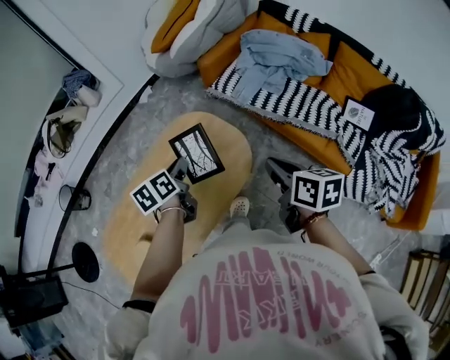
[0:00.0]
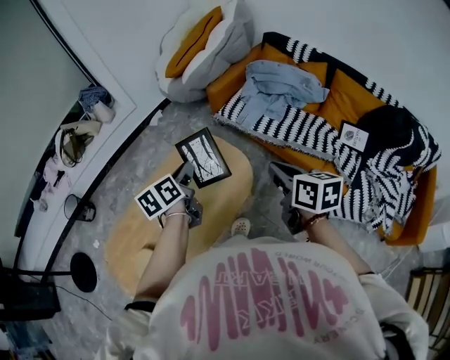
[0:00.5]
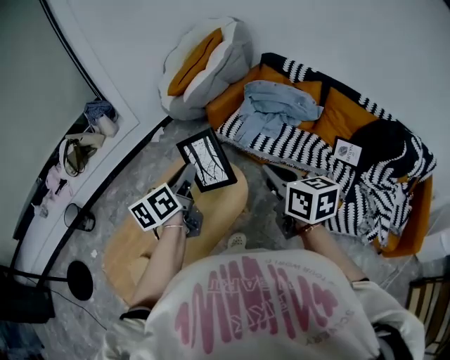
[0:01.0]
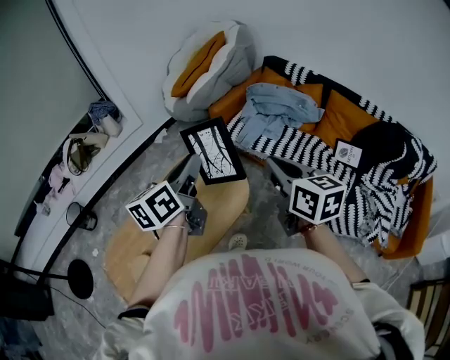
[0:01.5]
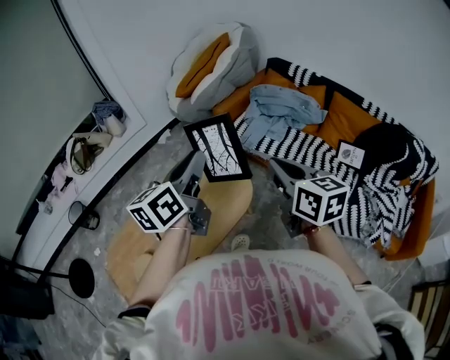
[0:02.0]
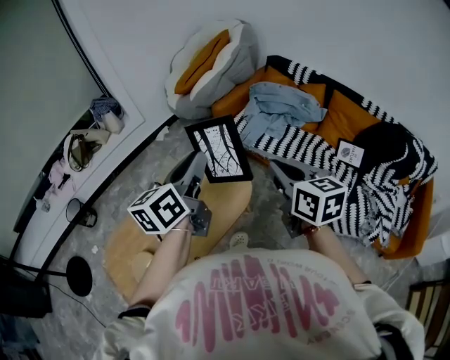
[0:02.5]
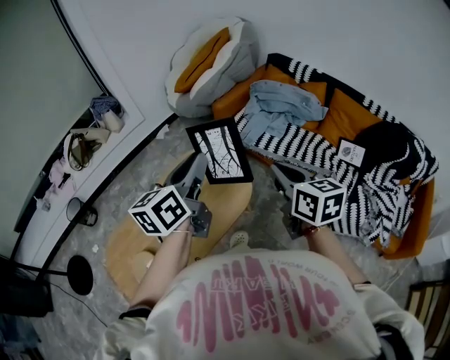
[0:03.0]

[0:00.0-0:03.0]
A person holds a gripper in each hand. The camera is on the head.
0:00.0 to 0:01.5: Both grippers move upward, some 20 cm. The right gripper turns by roughly 30 degrees. Meanwhile the left gripper swivels about 30 degrees.
0:01.5 to 0:03.0: The grippers move only a little.

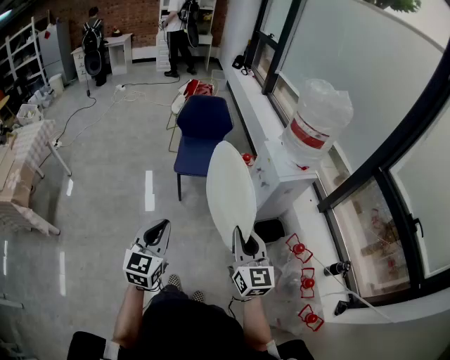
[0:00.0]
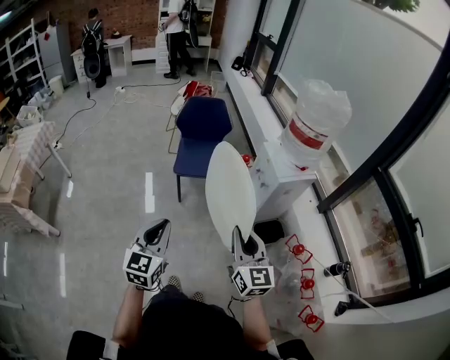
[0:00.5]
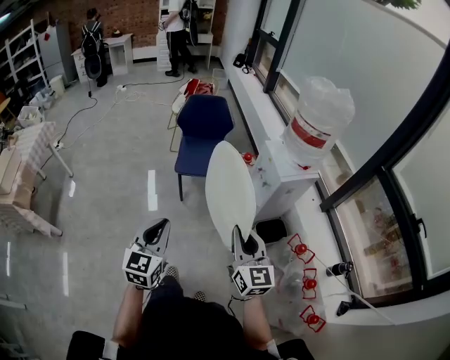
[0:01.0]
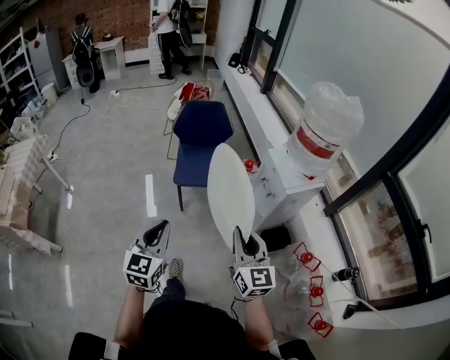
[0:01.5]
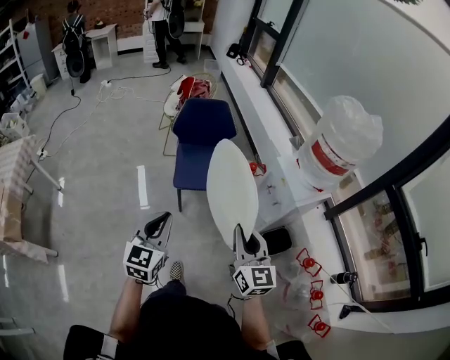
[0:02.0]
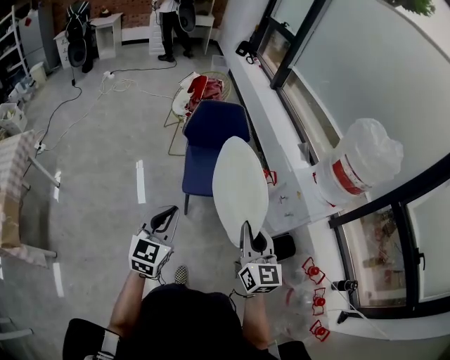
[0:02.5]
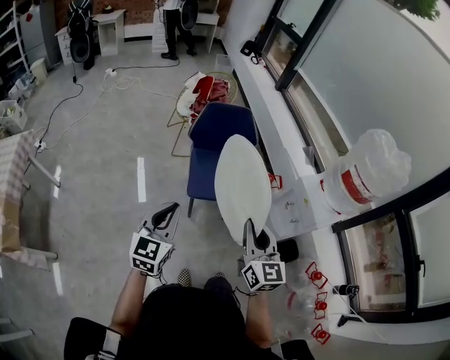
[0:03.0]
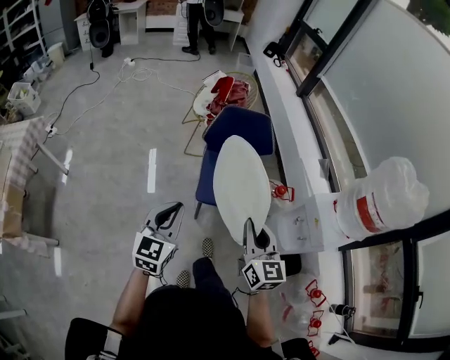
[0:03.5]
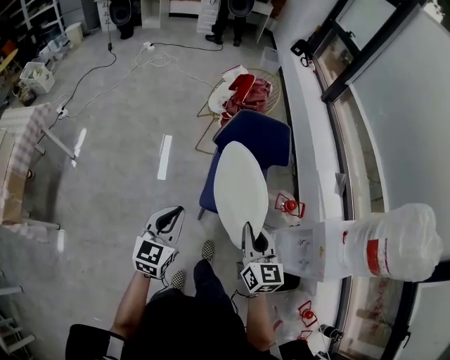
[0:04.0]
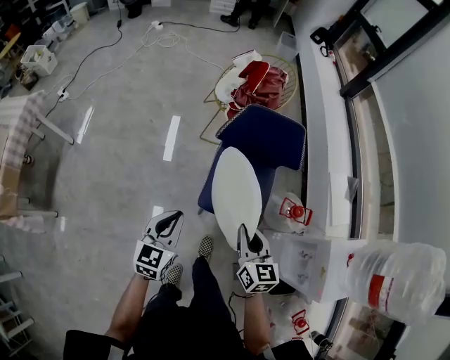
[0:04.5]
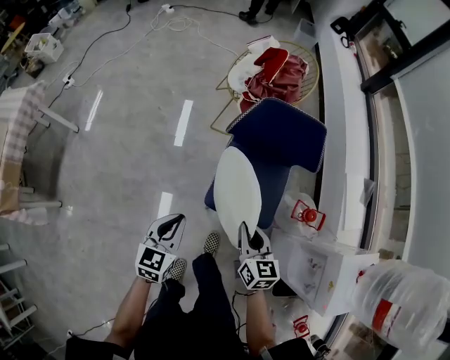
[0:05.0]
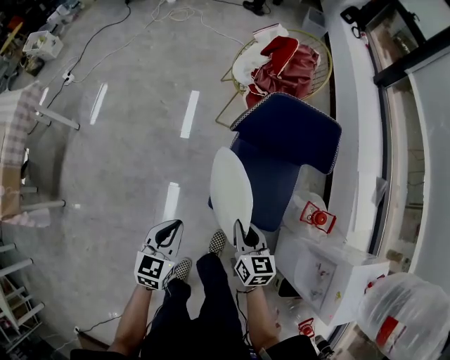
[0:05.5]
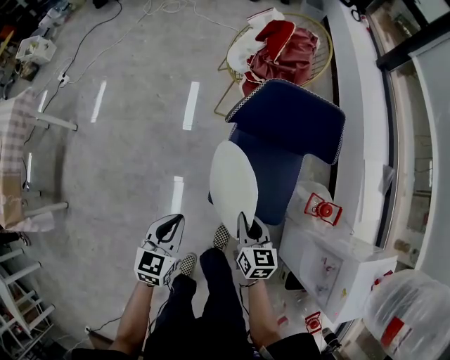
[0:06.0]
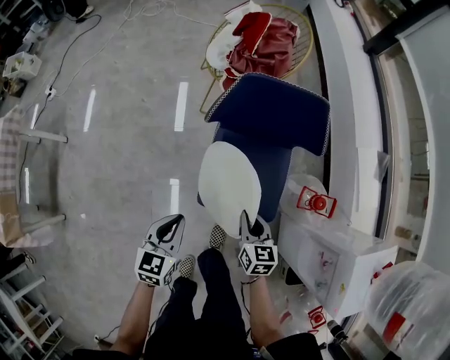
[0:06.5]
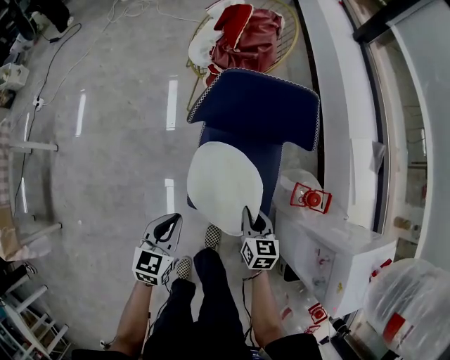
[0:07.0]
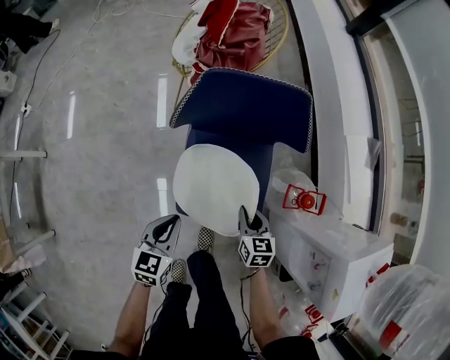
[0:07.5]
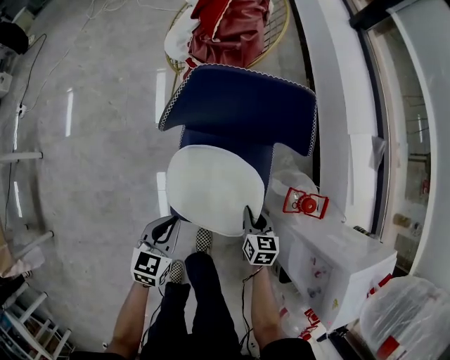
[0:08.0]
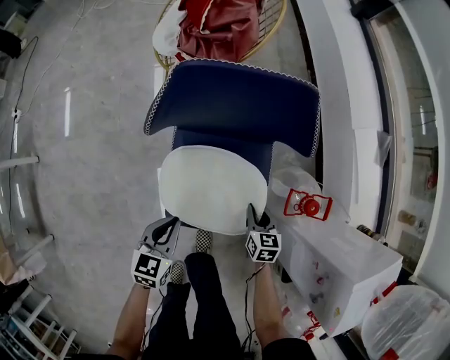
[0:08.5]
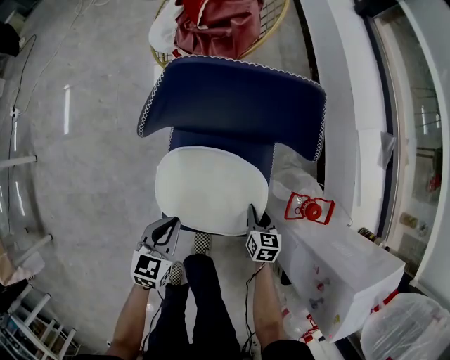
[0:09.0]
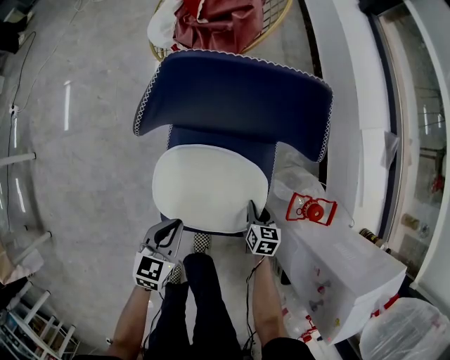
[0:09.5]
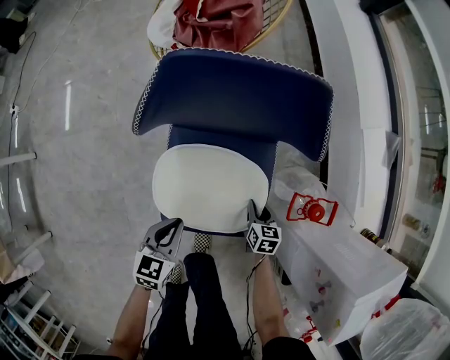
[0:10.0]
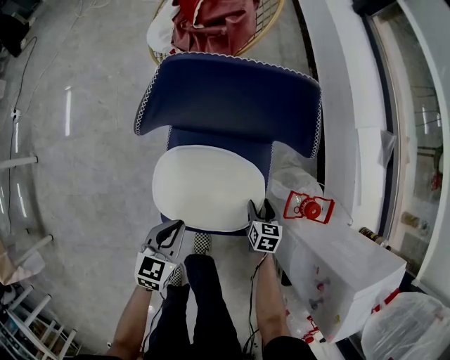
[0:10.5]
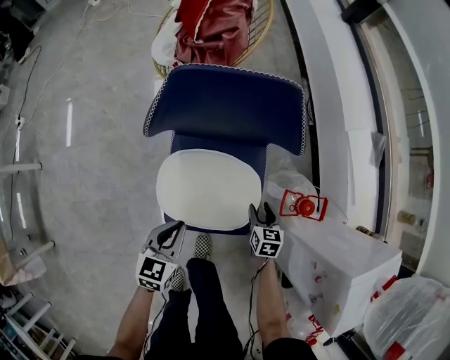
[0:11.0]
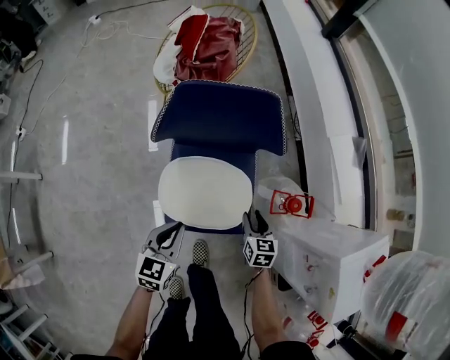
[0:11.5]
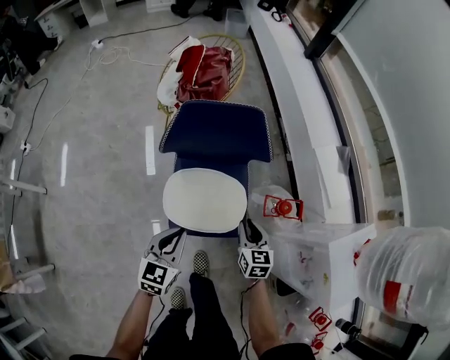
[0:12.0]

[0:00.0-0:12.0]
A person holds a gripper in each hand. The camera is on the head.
0:00.0 to 0:02.0: The left gripper heads forward, covering about 25 cm. Meanwhile the right gripper is displaced forward and to the left by some 25 cm.
0:02.0 to 0:04.0: The grippers both shift forward and to the left by about 35 cm.
0:04.0 to 0:06.0: Both grippers move downward and forward, about 30 cm. The left gripper turns by roughly 20 degrees. The right gripper turns by approximately 20 degrees.
0:06.0 to 0:08.0: The right gripper travels to the right, downward and forward by approximately 25 cm. Meanwhile the left gripper travels downward, to the right and forward by roughly 20 cm.
0:08.0 to 0:10.0: The left gripper goes some 10 cm downward, while the right gripper is displaced downward by some 15 cm.
0:10.0 to 0:12.0: Both grippers travel together upward, approximately 25 cm. The right gripper swivels some 20 degrees, and opens and closes again.

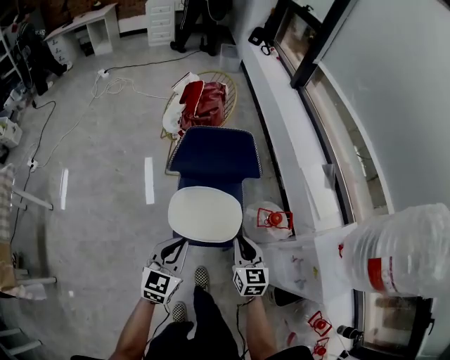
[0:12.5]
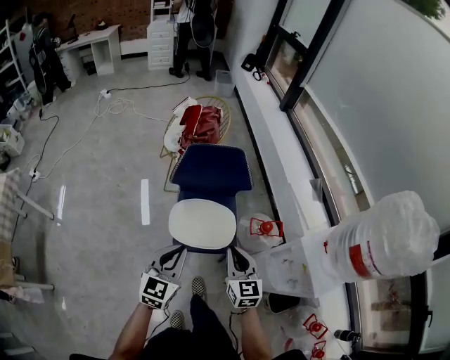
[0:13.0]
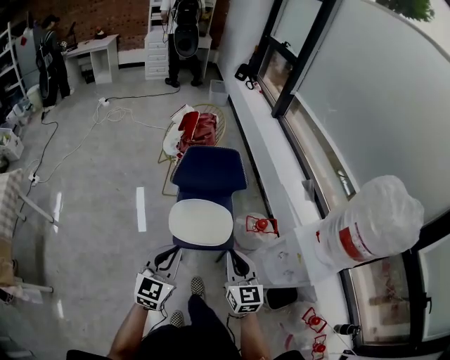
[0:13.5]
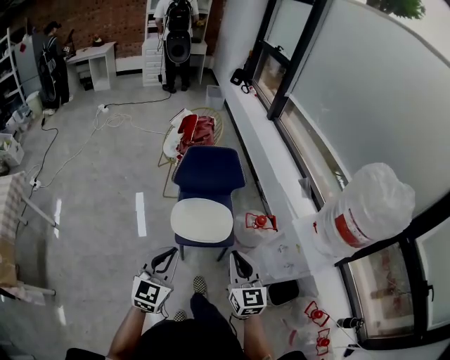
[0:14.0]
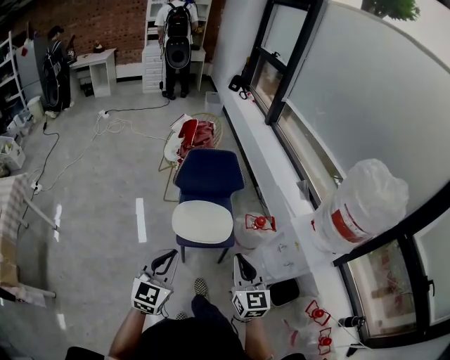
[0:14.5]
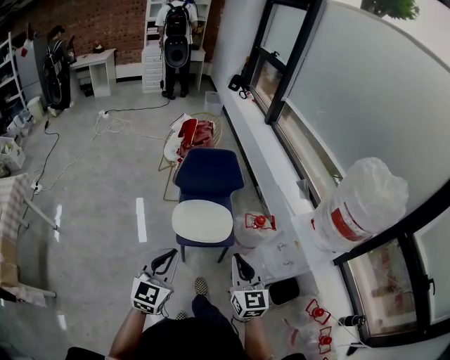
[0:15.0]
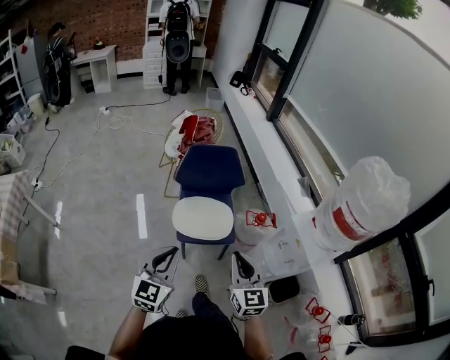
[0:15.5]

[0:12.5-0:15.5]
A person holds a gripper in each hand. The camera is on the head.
0:12.5 to 0:14.0: The two grippers go about 30 cm backward and upward.
0:14.0 to 0:15.5: The grippers move only a little.

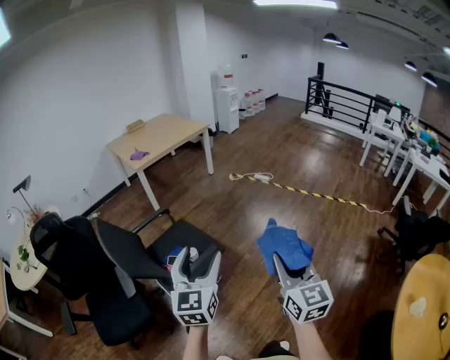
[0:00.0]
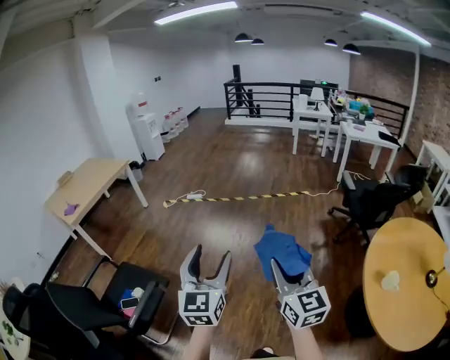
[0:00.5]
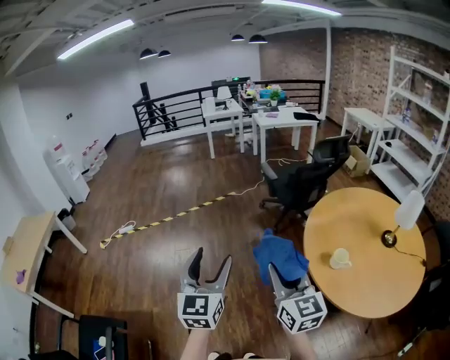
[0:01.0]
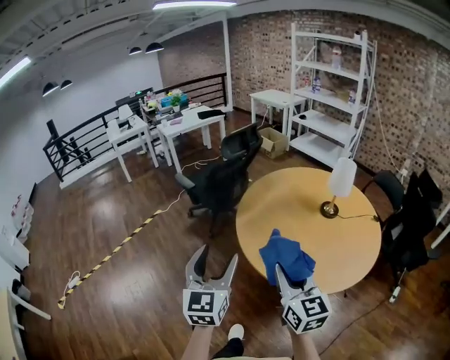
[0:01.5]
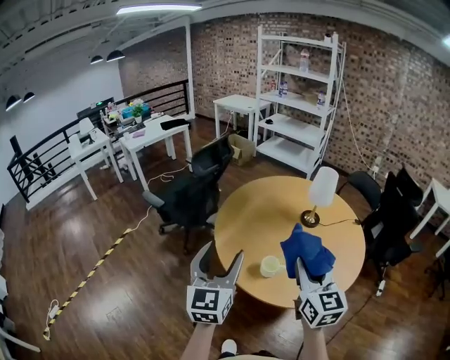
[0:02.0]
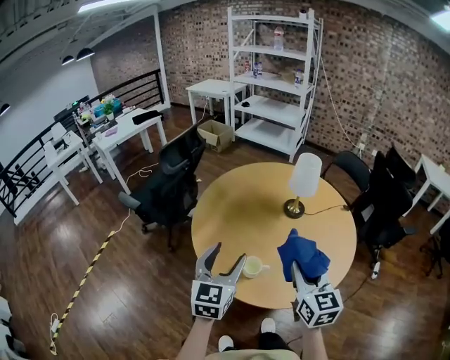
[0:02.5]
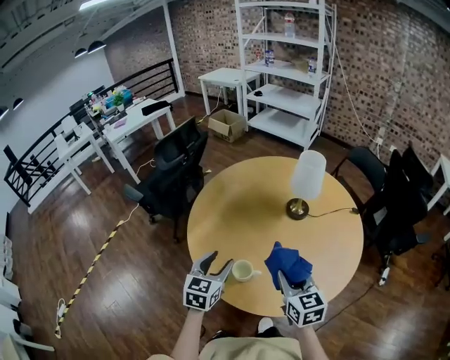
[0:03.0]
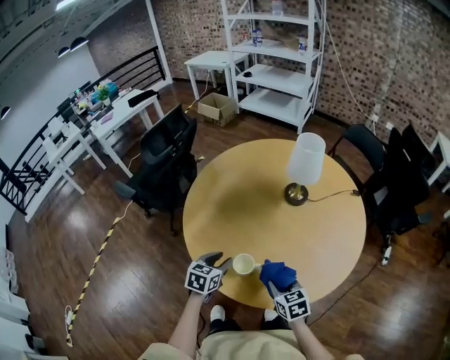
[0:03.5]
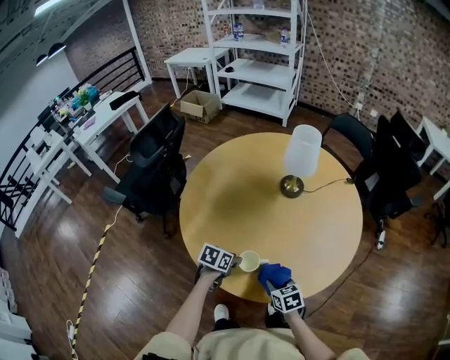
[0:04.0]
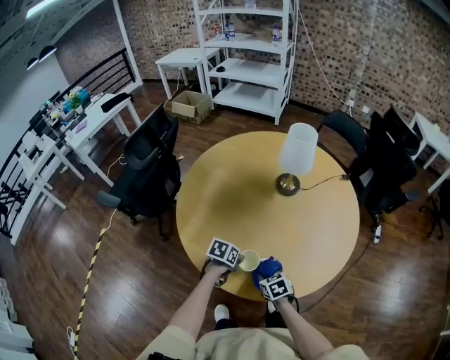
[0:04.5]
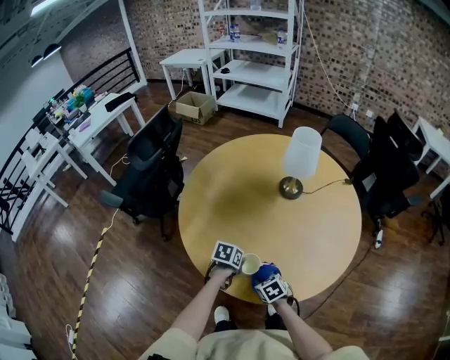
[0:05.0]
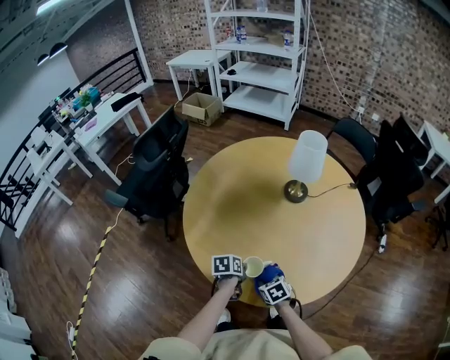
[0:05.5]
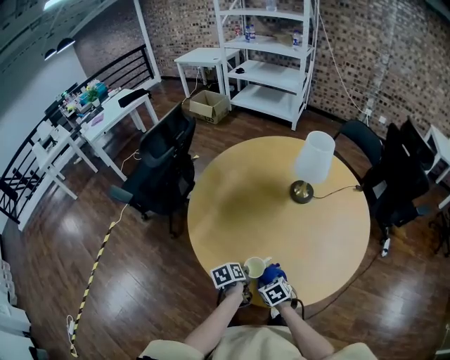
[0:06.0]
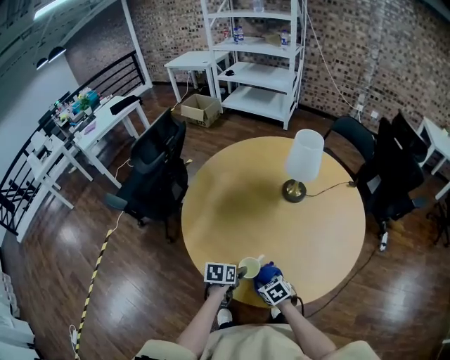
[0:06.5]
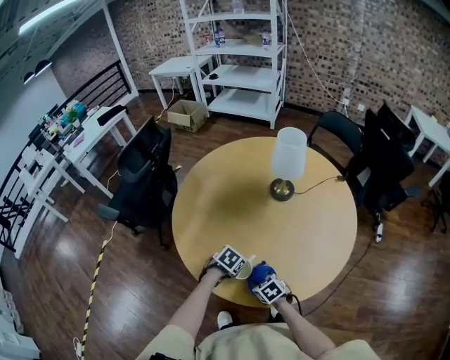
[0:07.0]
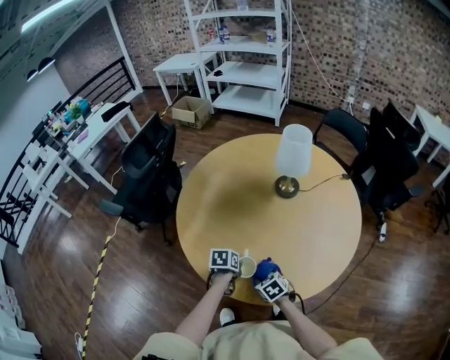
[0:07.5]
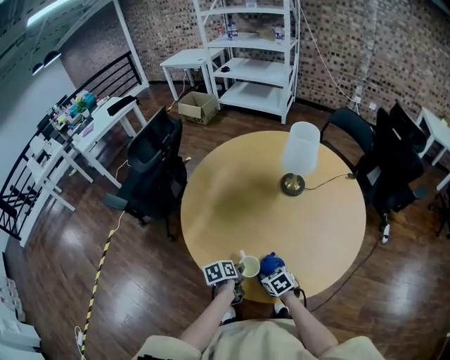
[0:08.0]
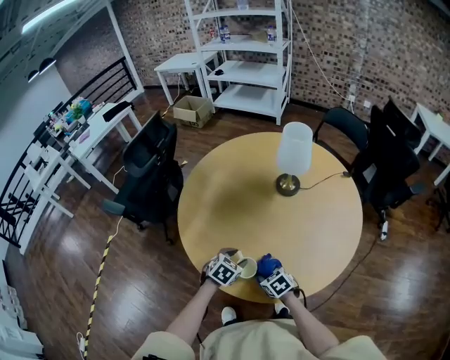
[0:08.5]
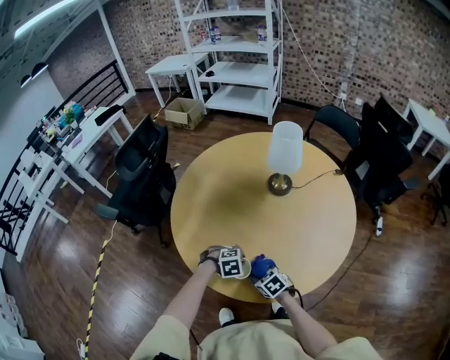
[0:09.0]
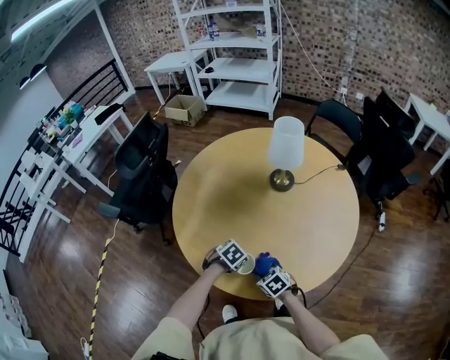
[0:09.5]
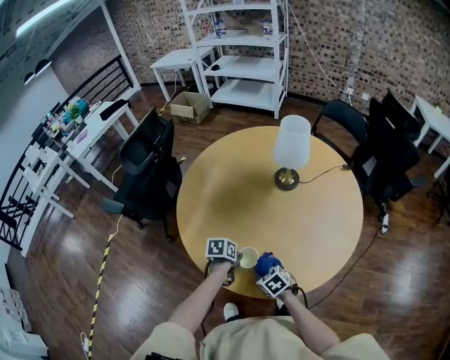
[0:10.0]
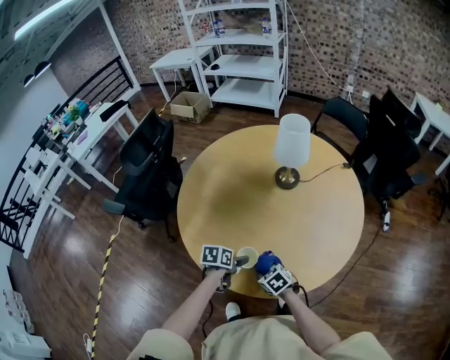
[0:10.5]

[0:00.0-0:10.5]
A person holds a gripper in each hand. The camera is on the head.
0:00.0 to 0:02.0: The pair of grippers is taken about 90 cm. The left gripper rotates approximately 100 degrees; the right gripper changes its angle by roughly 90 degrees.
0:02.0 to 0:04.0: The left gripper is displaced downward and forward by about 40 cm, tips its fingers downward by approximately 50 degrees, and closes up; the right gripper shifts approximately 40 cm downward, and tips its fingers downward by roughly 40 degrees.
0:04.0 to 0:06.5: The right gripper shifts roughly 5 cm to the left; the left gripper opens its fingers.
0:06.5 to 0:08.5: The left gripper rotates around the line of its fingers by about 50 degrees, clockwise from behind, and closes, then reopens.
0:08.5 to 0:10.5: The left gripper rolls counterclockwise, seen from behind, by approximately 40 degrees, and opens up.
